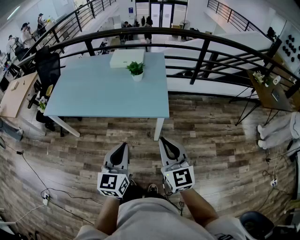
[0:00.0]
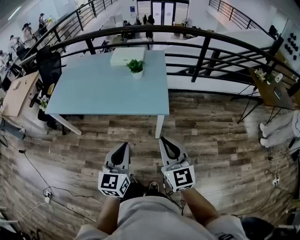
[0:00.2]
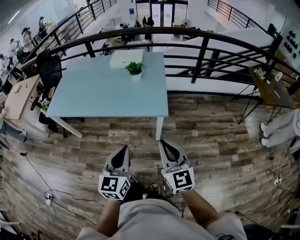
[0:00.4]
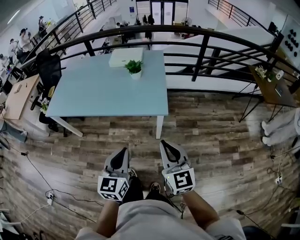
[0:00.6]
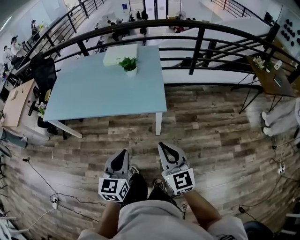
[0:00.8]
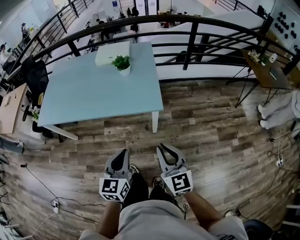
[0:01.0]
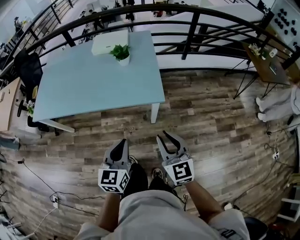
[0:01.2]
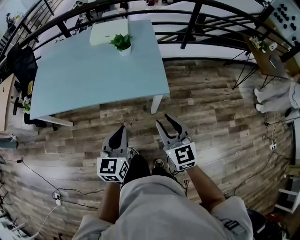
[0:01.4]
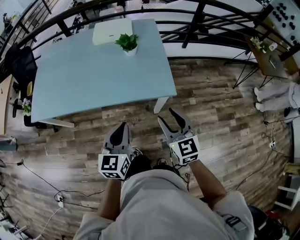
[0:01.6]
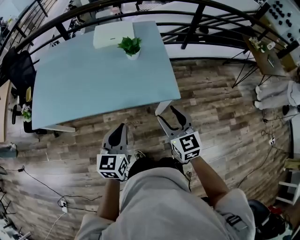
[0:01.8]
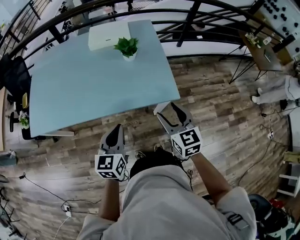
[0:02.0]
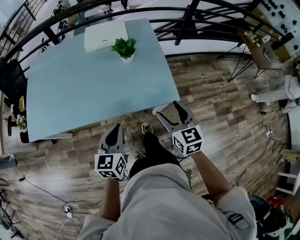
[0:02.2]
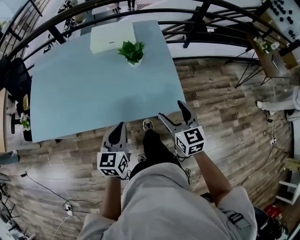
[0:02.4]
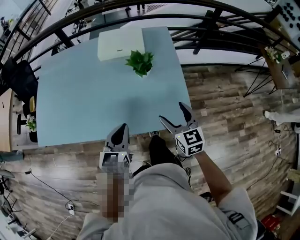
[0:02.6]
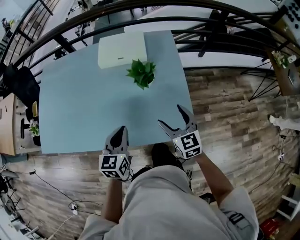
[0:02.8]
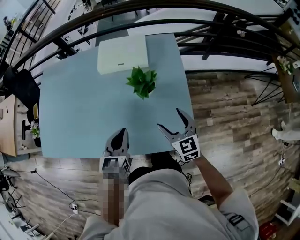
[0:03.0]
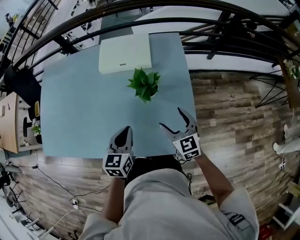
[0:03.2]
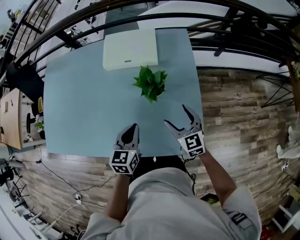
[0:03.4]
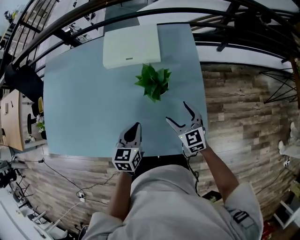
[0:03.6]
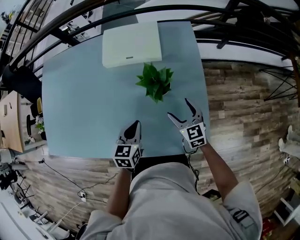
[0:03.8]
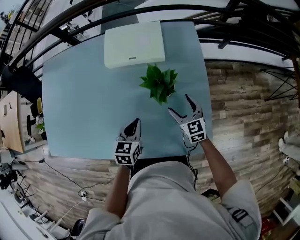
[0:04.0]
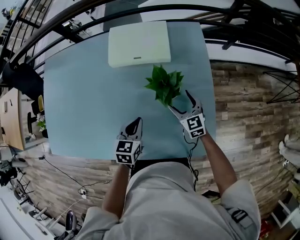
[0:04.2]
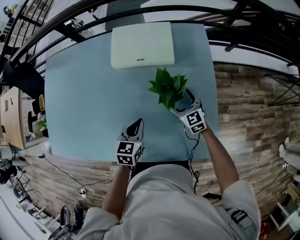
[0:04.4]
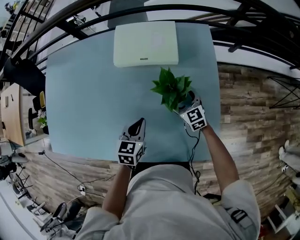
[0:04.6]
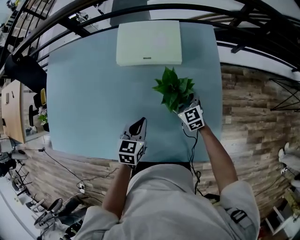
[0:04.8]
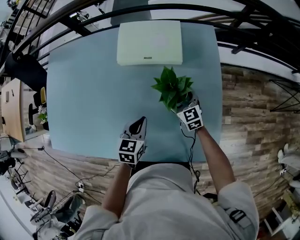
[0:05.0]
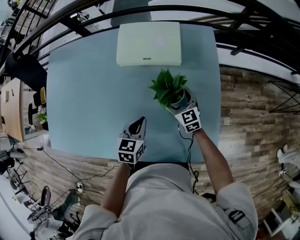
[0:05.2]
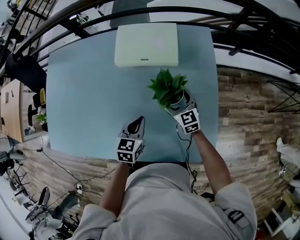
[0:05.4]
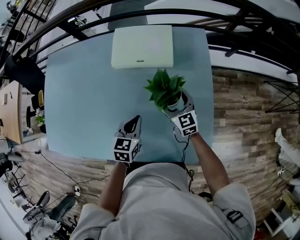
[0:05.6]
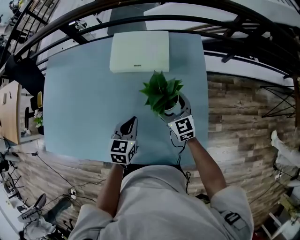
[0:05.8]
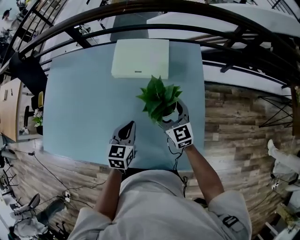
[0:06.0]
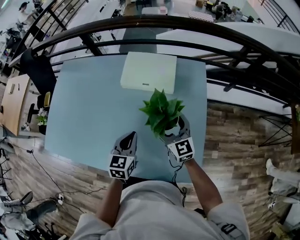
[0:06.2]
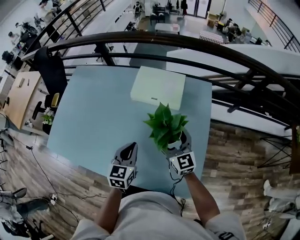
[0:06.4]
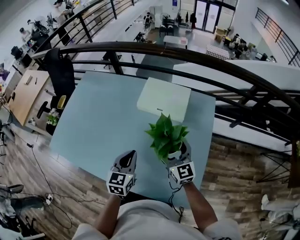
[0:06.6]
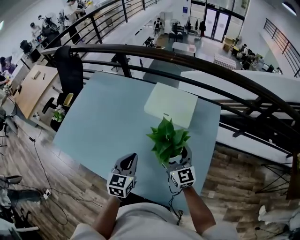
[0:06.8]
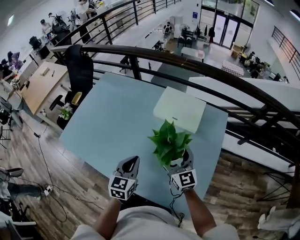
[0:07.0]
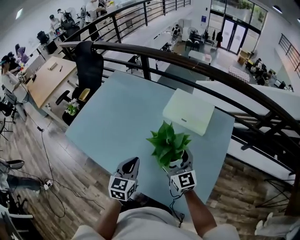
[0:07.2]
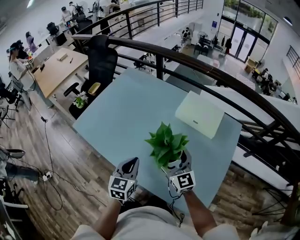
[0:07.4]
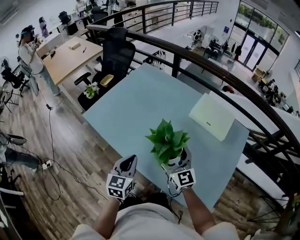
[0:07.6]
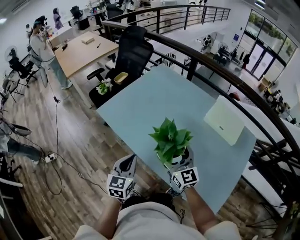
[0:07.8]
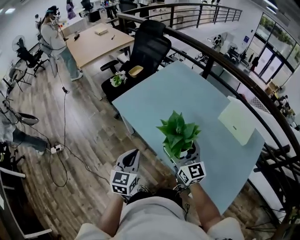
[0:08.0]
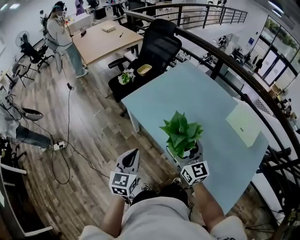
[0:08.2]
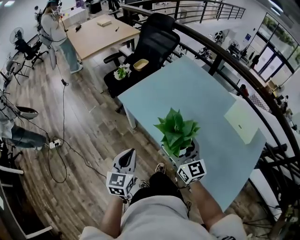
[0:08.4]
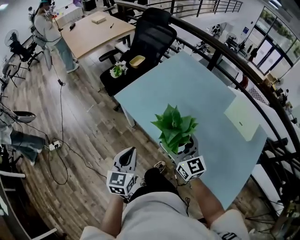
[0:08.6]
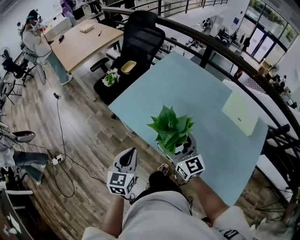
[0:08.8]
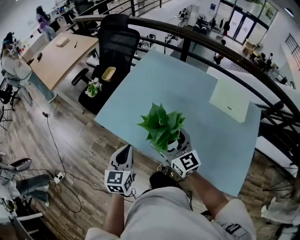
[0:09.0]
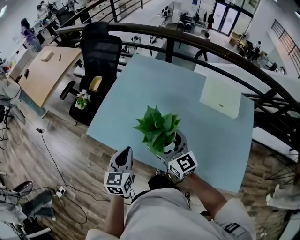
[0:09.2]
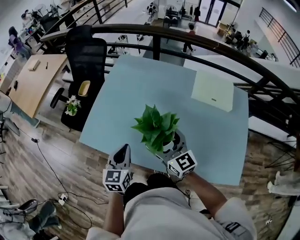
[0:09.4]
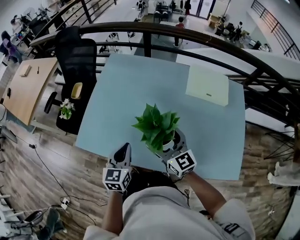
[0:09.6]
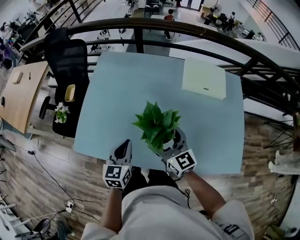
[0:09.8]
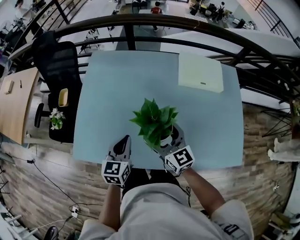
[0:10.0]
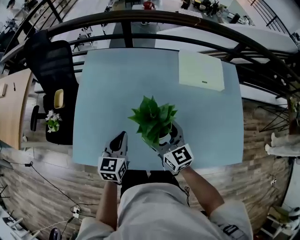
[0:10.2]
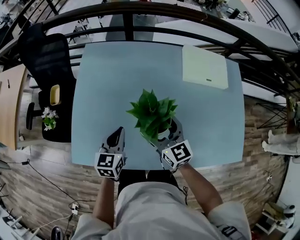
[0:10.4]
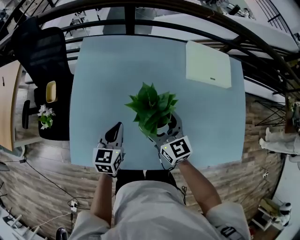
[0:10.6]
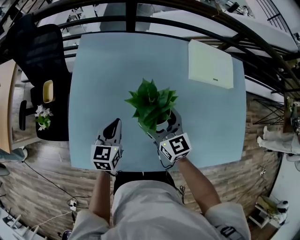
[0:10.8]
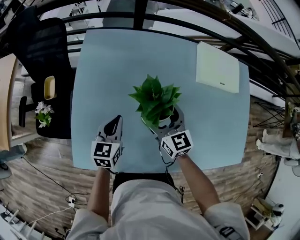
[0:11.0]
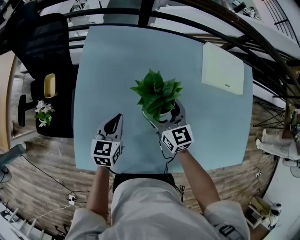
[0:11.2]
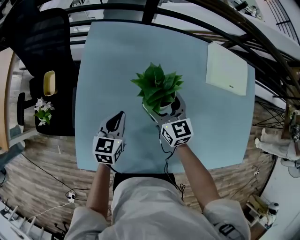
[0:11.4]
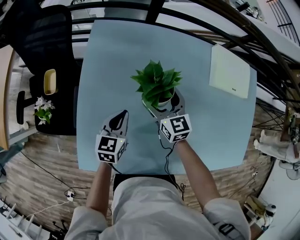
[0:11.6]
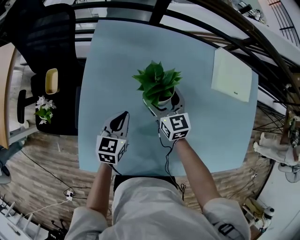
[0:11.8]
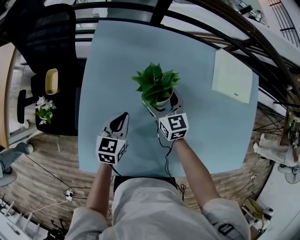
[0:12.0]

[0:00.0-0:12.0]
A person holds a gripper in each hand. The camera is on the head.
0:00.0 to 0:01.6: The left gripper shifts approximately 15 cm forward, downward and to the left. The right gripper shifts about 15 cm forward and downward, and opens its fingers.
0:01.6 to 0:03.0: Both grippers travel together forward, approximately 30 cm. The right gripper opens up.
0:03.0 to 0:04.4: The left gripper is displaced downward and forward by roughly 15 cm; the right gripper heads forward and downward, covering some 20 cm.
0:04.4 to 0:06.0: The right gripper moves upward, approximately 15 cm. Meanwhile the left gripper moves upward, some 5 cm.
0:06.0 to 0:07.6: The right gripper moves roughly 30 cm, and turns by some 30 degrees. The left gripper ends up about 30 cm from where it was, and rotates about 30 degrees.
0:07.6 to 0:09.0: The two grippers go about 20 cm to the left and forward.
0:09.0 to 0:10.4: The left gripper ends up roughly 25 cm from where it was, and changes its angle by approximately 30 degrees; the right gripper ends up roughly 20 cm from where it was, and changes its angle by roughly 30 degrees.
0:10.4 to 0:12.0: Both grippers travel together forward, downward and to the left, roughly 20 cm.

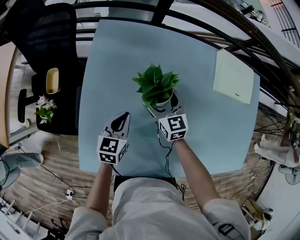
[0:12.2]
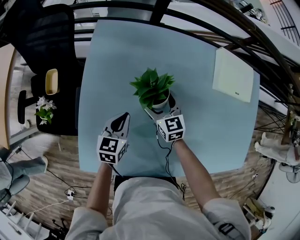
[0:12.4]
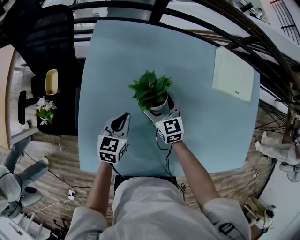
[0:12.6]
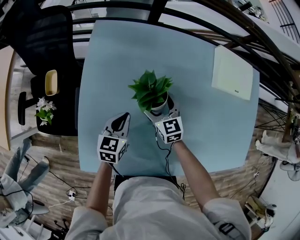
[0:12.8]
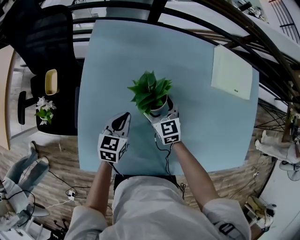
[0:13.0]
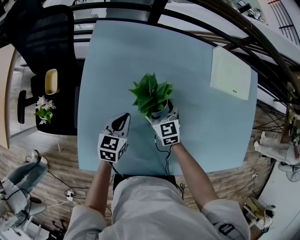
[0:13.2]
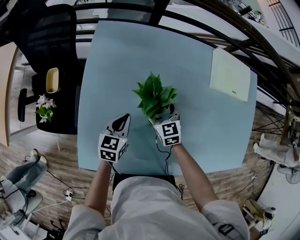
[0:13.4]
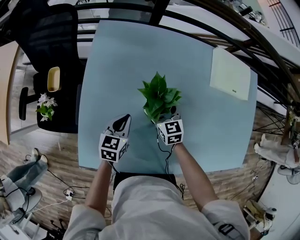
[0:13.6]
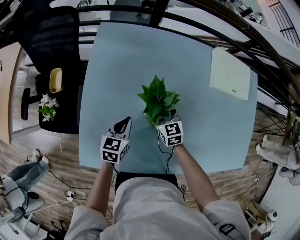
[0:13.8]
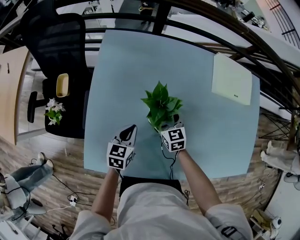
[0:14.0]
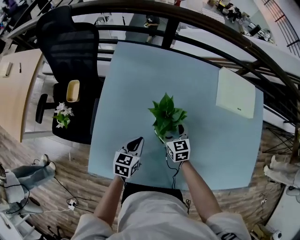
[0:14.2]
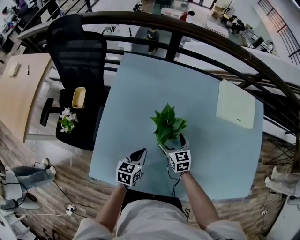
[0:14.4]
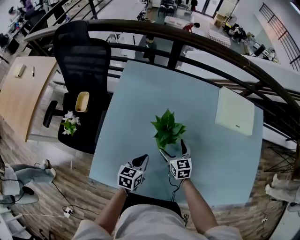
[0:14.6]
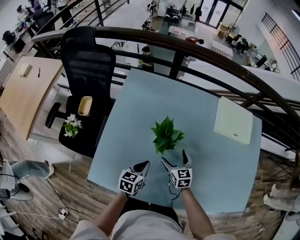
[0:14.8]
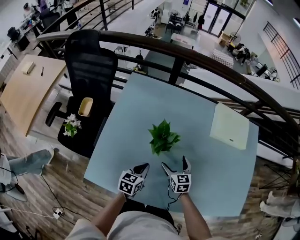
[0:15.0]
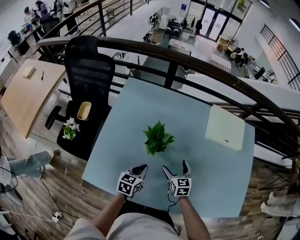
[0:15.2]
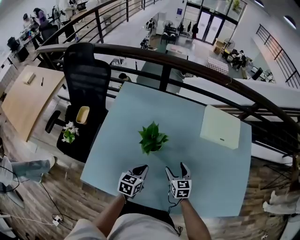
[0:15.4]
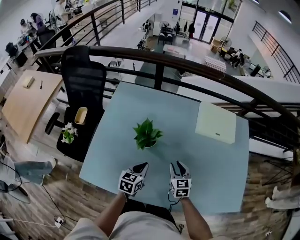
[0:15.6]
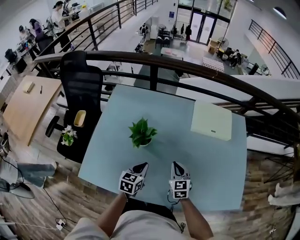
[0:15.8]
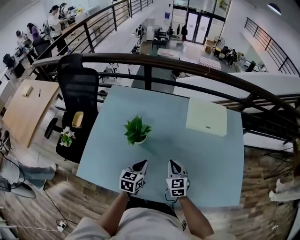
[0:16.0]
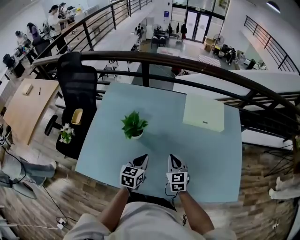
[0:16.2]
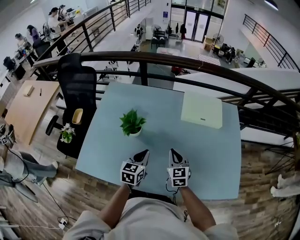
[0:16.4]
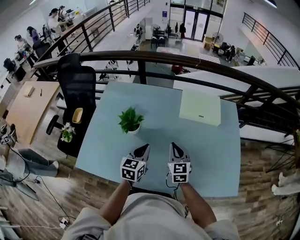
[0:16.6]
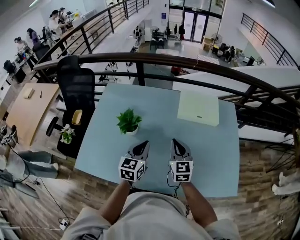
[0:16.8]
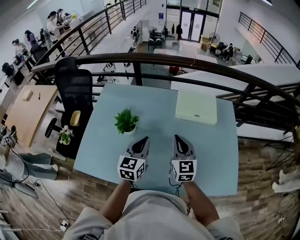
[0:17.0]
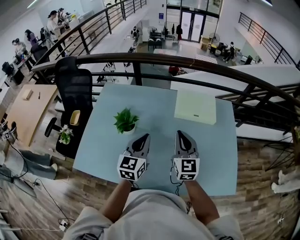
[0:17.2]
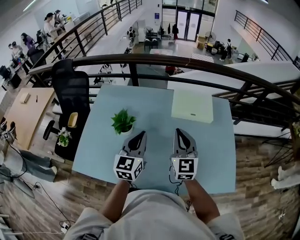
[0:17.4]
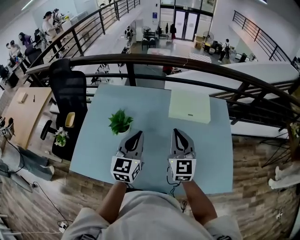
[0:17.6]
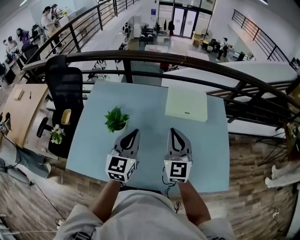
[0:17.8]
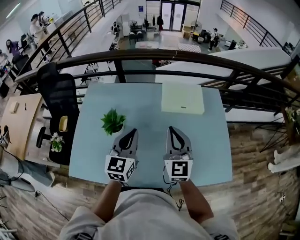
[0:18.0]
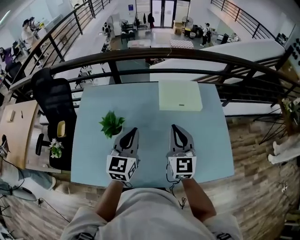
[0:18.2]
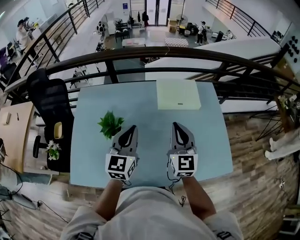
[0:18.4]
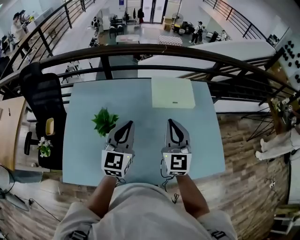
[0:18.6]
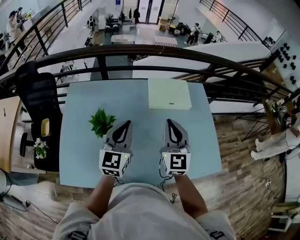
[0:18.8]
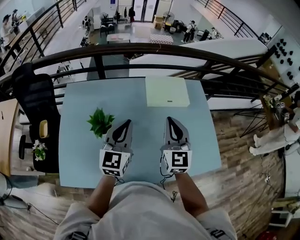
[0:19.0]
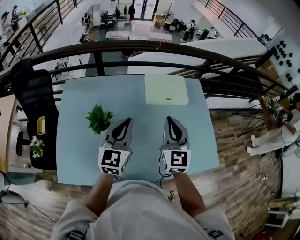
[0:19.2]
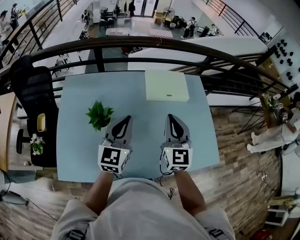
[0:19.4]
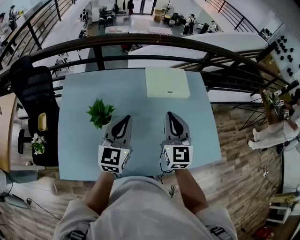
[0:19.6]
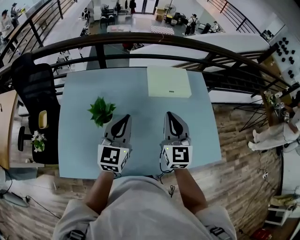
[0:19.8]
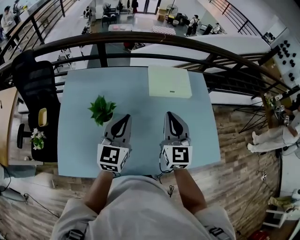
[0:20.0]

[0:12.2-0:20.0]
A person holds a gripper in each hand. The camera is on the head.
0:12.2 to 0:13.8: The right gripper shifts about 5 cm backward.
0:13.8 to 0:15.4: The grippers both shift to the right and backward by some 15 cm.
0:15.4 to 0:16.8: Both grippers move upward and to the right, about 20 cm. The left gripper turns by roughly 20 degrees. Meanwhile the right gripper rotates approximately 20 degrees, and closes up.
0:16.8 to 0:18.4: Both grippers travel together upward, roughly 10 cm.
0:18.4 to 0:20.0: The grippers make only small movements.

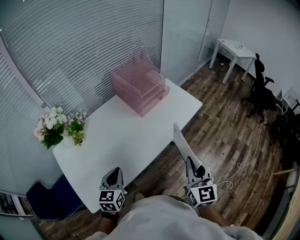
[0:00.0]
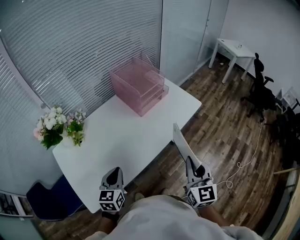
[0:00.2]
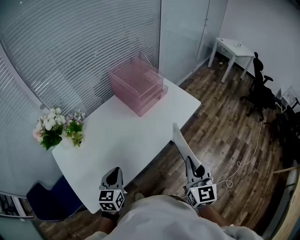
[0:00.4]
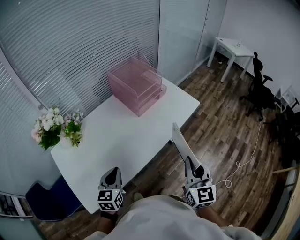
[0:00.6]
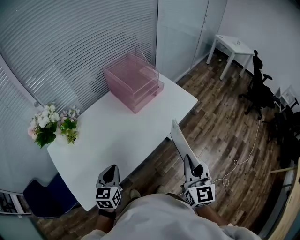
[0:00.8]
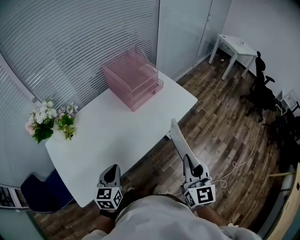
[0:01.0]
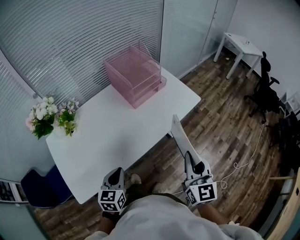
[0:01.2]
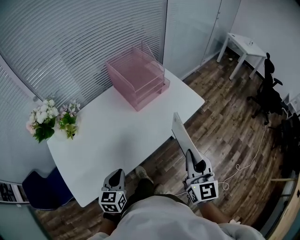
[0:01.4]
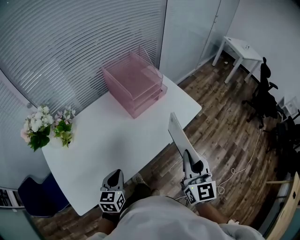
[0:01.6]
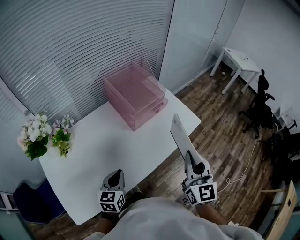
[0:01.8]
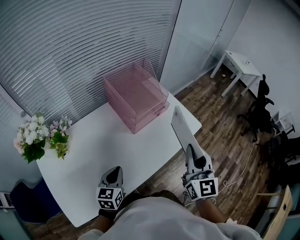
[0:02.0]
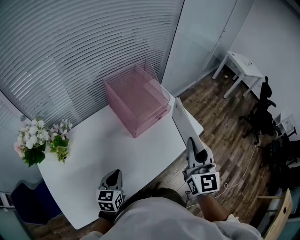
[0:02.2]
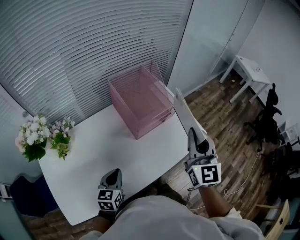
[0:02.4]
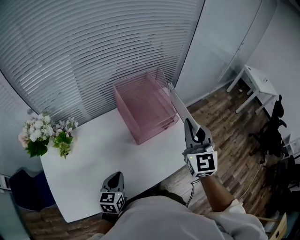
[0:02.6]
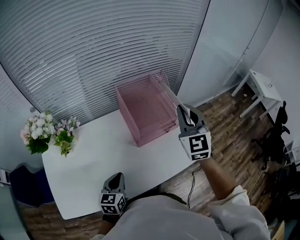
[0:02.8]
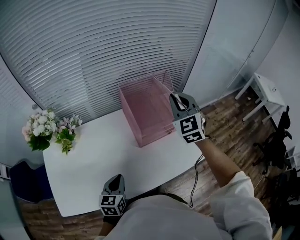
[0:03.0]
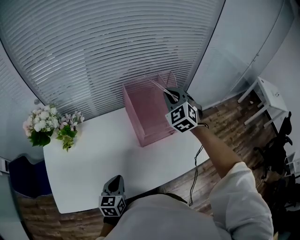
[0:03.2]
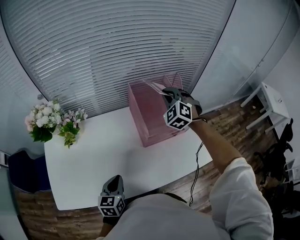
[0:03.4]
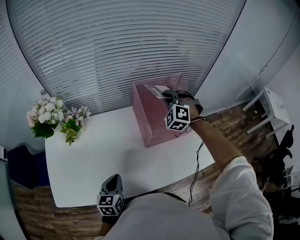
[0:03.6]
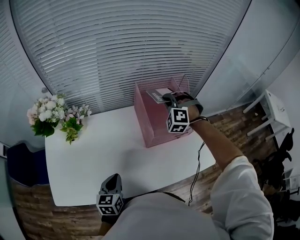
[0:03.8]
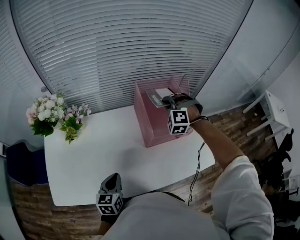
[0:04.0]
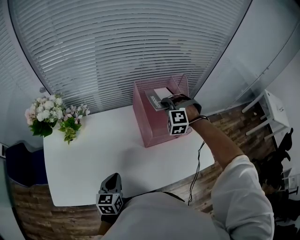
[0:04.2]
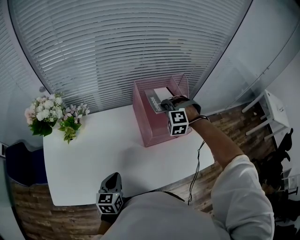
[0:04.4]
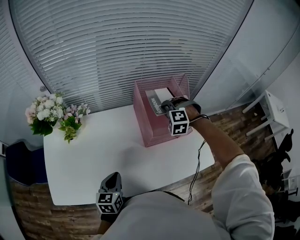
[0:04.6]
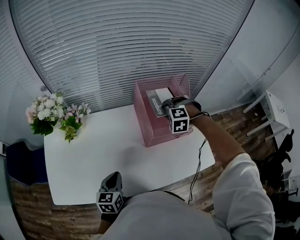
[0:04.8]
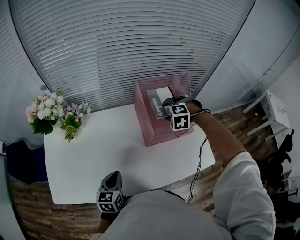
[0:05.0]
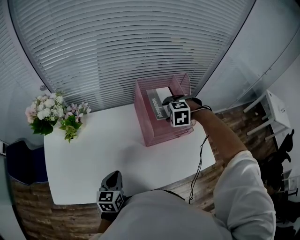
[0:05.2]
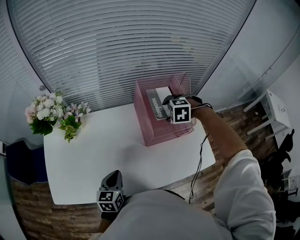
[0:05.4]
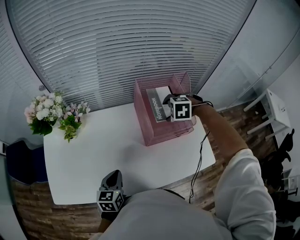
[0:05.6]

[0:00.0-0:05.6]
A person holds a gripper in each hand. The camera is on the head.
0:00.0 to 0:01.4: The left gripper heads to the right, covering approximately 10 cm. The right gripper heads forward and to the right, covering some 10 cm.
0:01.4 to 0:02.8: The left gripper moves forward, some 20 cm. The right gripper is displaced forward by about 40 cm, and turns by approximately 30 degrees.
0:02.8 to 0:04.2: The right gripper shifts approximately 25 cm downward, forward and to the left, and rotates around the line of its fingers by some 60 degrees, counterclockwise from behind.
0:04.2 to 0:05.6: The right gripper points its fingers roughly 30 degrees further downward, and opens up.
